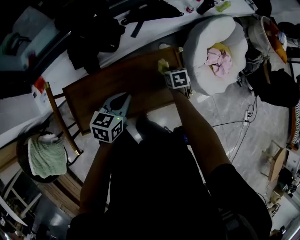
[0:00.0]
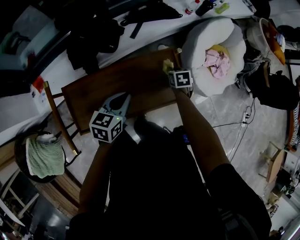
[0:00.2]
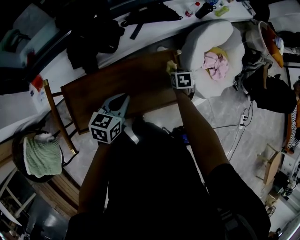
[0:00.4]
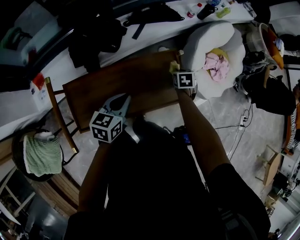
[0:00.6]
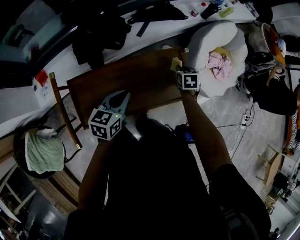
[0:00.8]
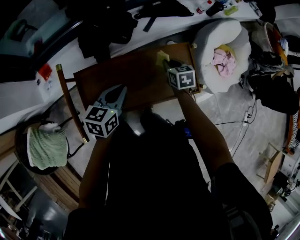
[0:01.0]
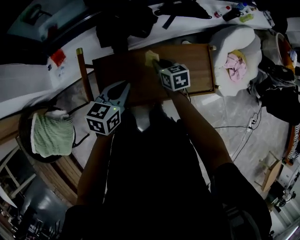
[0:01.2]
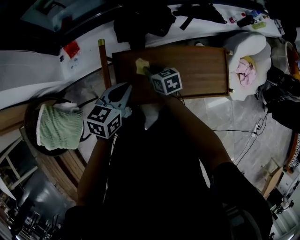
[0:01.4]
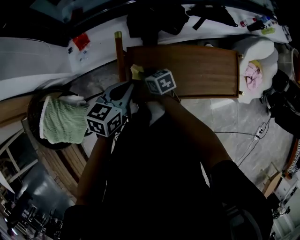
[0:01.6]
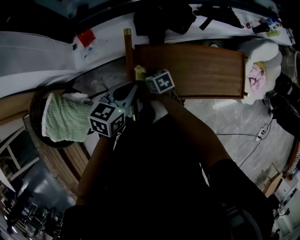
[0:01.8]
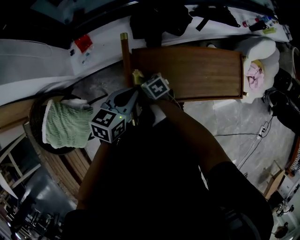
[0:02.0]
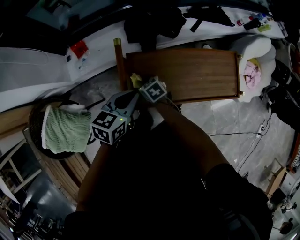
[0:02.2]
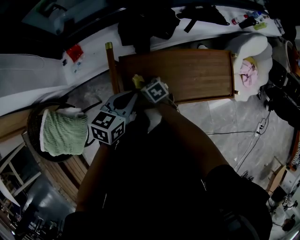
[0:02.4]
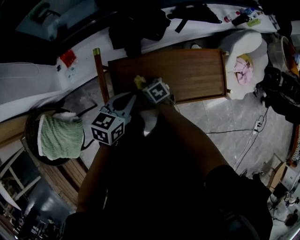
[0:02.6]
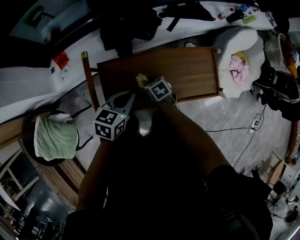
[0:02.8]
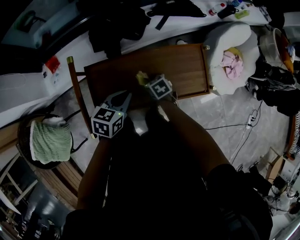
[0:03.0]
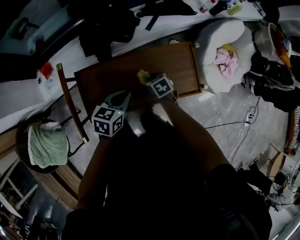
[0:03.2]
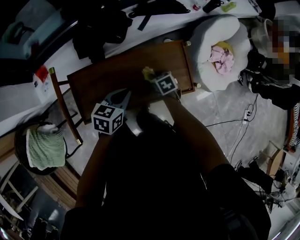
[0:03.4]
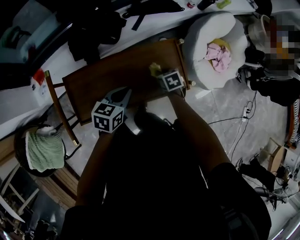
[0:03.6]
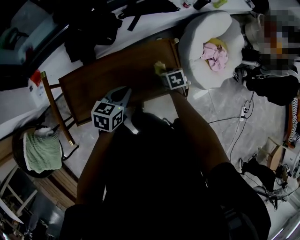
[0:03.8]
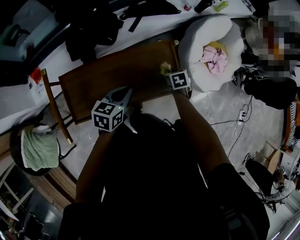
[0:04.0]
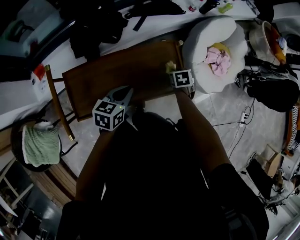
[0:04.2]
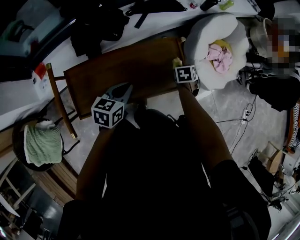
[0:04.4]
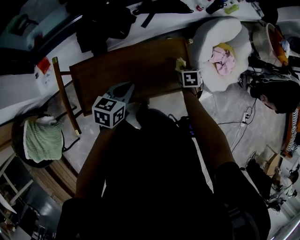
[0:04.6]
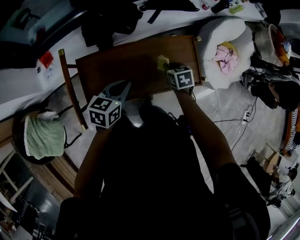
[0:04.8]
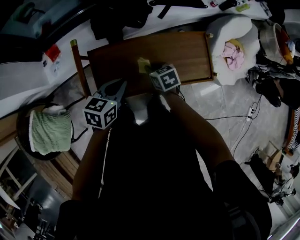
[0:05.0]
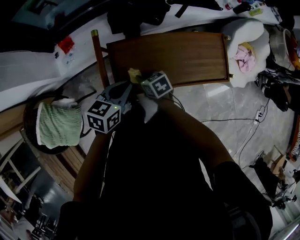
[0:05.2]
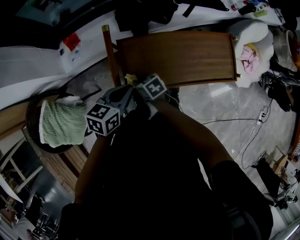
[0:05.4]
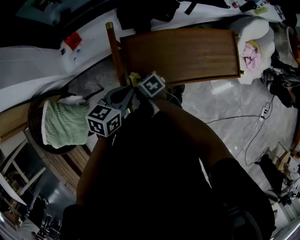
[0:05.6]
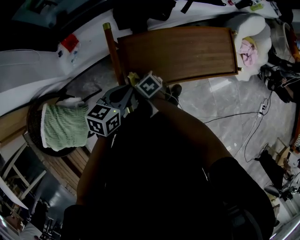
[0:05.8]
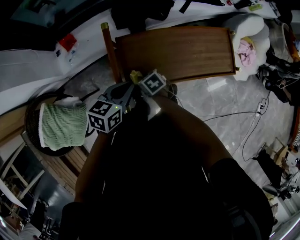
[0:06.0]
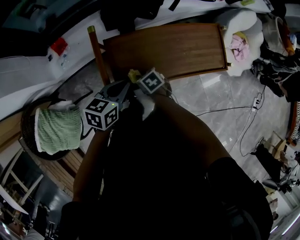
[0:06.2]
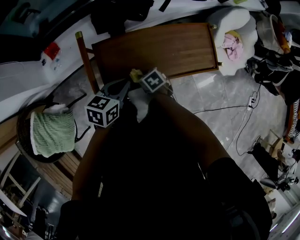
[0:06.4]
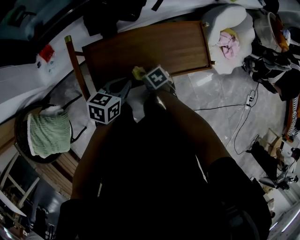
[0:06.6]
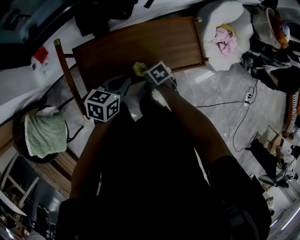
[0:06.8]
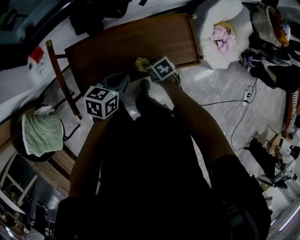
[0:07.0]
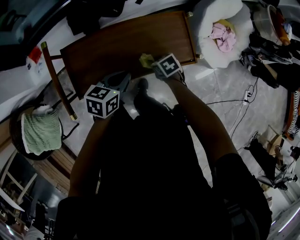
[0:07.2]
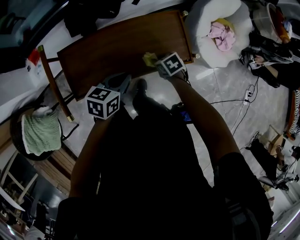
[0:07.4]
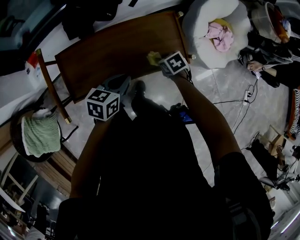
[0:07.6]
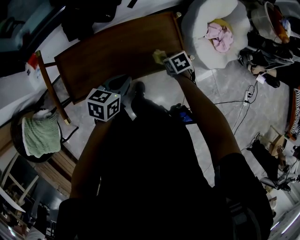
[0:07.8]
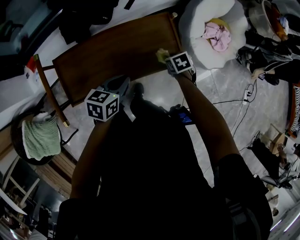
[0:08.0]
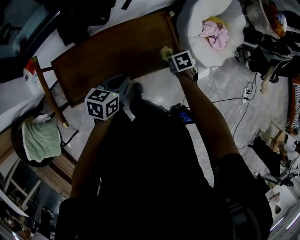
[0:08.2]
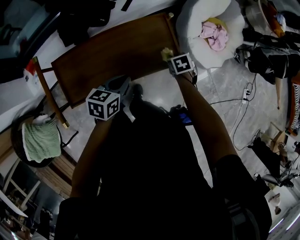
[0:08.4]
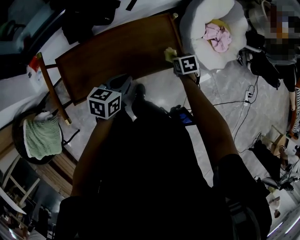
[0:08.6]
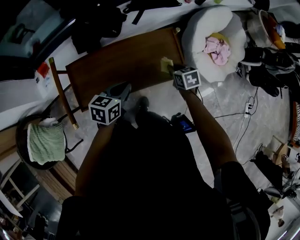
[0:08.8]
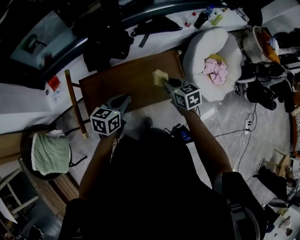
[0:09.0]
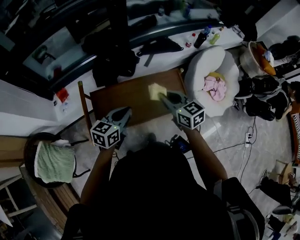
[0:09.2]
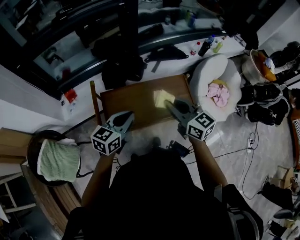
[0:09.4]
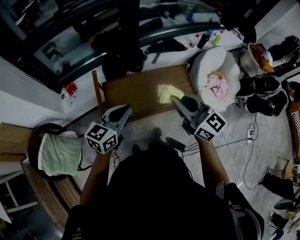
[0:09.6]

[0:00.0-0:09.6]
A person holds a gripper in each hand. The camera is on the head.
0:00.0 to 0:01.6: The right gripper travels upward and back again, approximately 10 cm each way, and rotates roughly 40 degrees, while the left gripper moves roughly 30 cm.
0:01.6 to 0:03.2: Both grippers travel together to the right, roughly 25 cm.
0:04.8 to 0:06.4: The right gripper heads to the left, covering about 25 cm, and turns by about 20 degrees. Meanwhile the left gripper heads to the left, covering about 10 cm.
0:06.4 to 0:08.0: The left gripper heads to the right, covering about 20 cm, while the right gripper shifts some 35 cm to the right.
0:08.0 to 0:09.6: The left gripper shifts approximately 30 cm upward, to the left and backward, and changes its angle by about 30 degrees. Meanwhile the right gripper is displaced upward, to the left and backward by approximately 50 cm, and angles its fingers upward, by roughly 70 degrees.

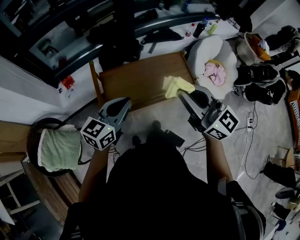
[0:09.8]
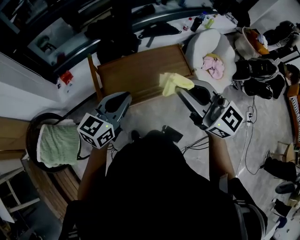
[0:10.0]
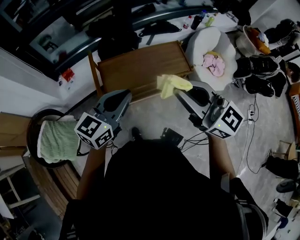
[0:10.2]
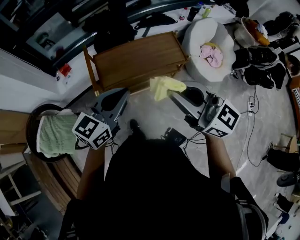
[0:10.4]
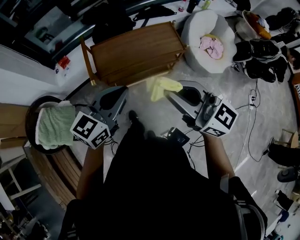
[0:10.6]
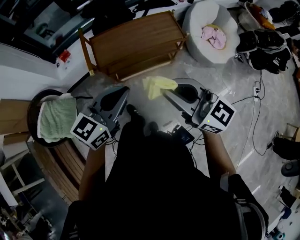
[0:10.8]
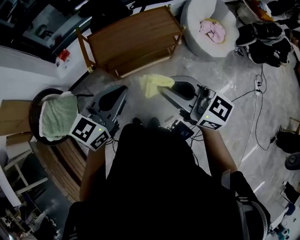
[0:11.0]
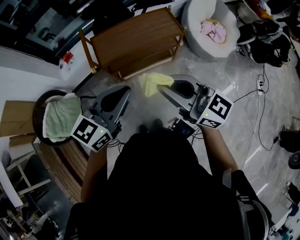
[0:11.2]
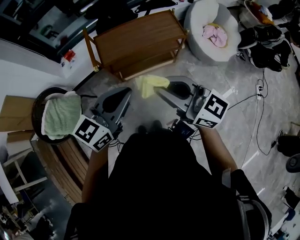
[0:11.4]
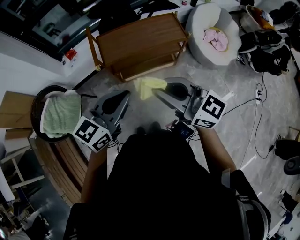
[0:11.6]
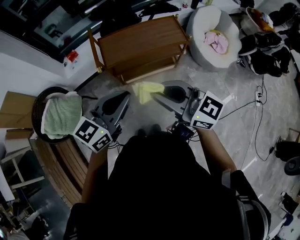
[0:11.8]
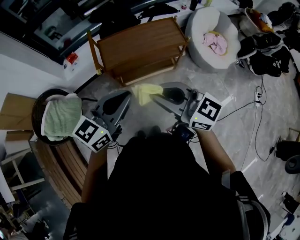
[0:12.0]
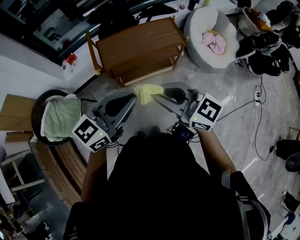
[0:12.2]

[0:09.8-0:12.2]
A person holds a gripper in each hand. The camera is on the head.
0:09.8 to 0:11.0: Both grippers travel together backward, approximately 25 cm.
0:11.0 to 0:12.2: The right gripper changes place by about 5 cm, while the left gripper ends up roughly 5 cm from where it was.

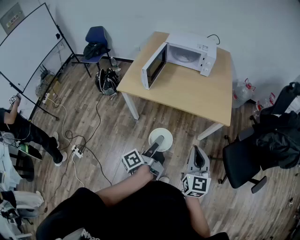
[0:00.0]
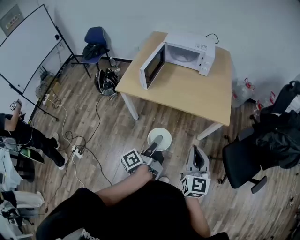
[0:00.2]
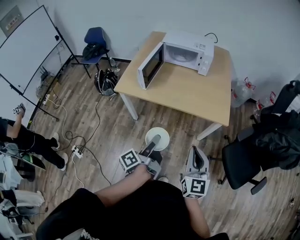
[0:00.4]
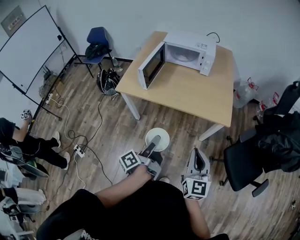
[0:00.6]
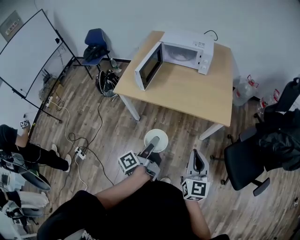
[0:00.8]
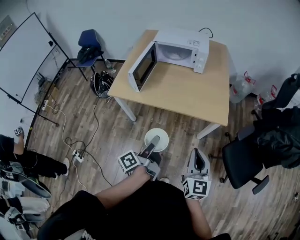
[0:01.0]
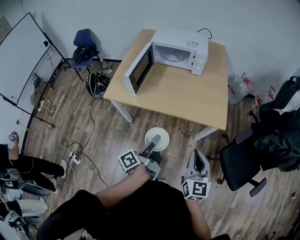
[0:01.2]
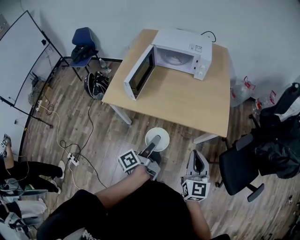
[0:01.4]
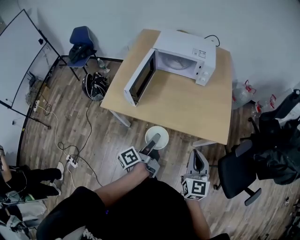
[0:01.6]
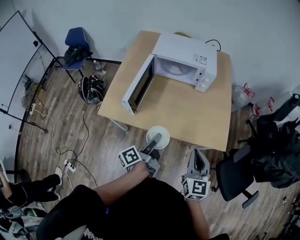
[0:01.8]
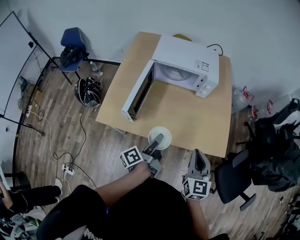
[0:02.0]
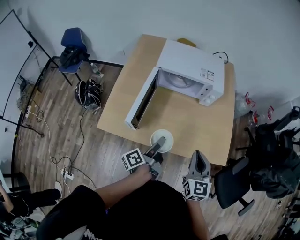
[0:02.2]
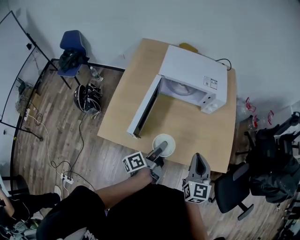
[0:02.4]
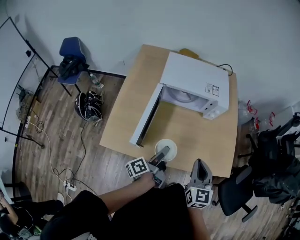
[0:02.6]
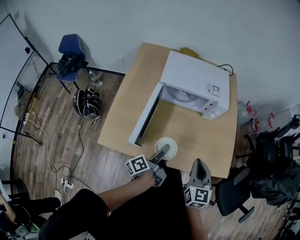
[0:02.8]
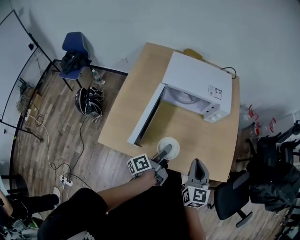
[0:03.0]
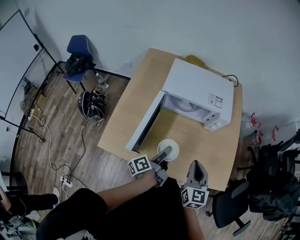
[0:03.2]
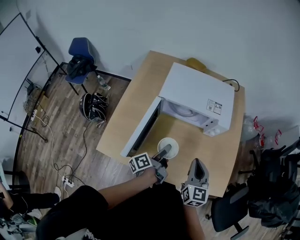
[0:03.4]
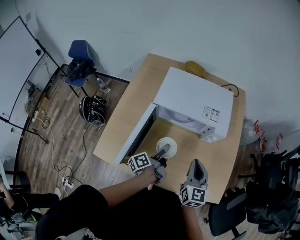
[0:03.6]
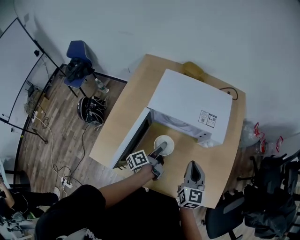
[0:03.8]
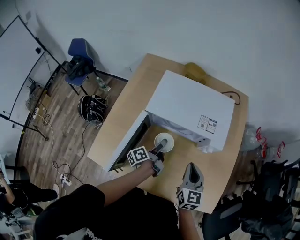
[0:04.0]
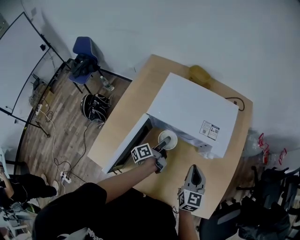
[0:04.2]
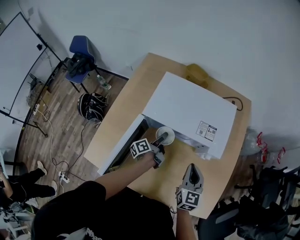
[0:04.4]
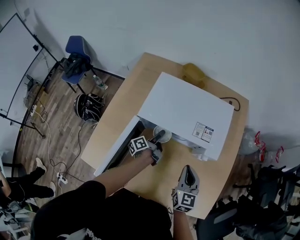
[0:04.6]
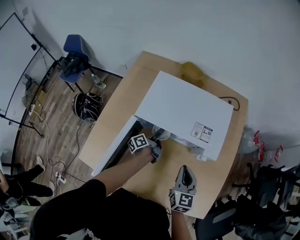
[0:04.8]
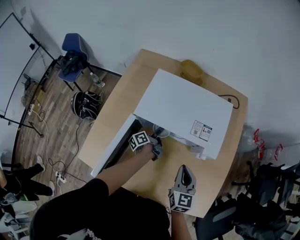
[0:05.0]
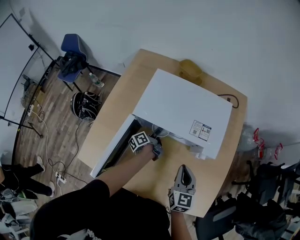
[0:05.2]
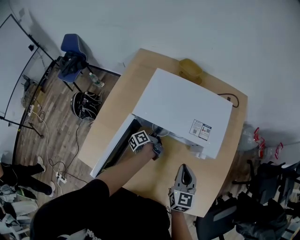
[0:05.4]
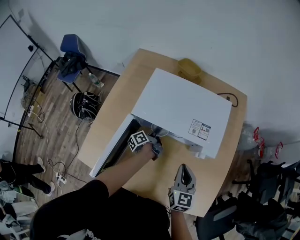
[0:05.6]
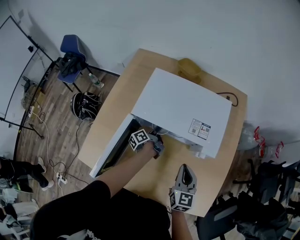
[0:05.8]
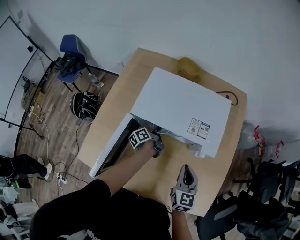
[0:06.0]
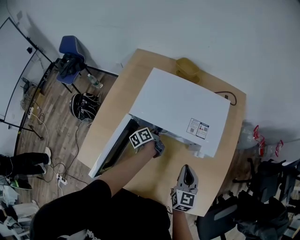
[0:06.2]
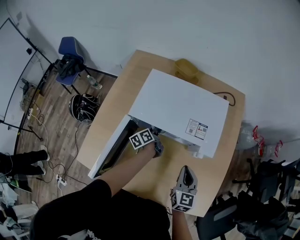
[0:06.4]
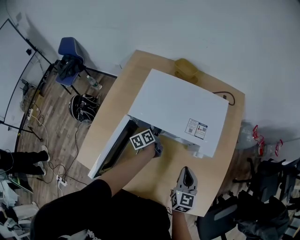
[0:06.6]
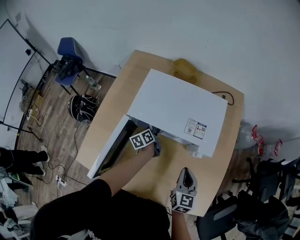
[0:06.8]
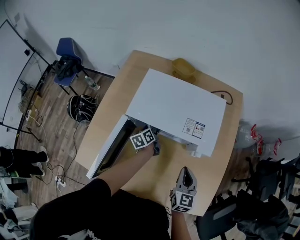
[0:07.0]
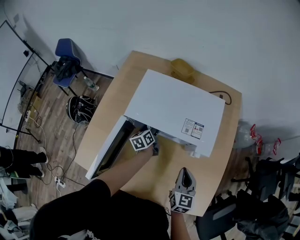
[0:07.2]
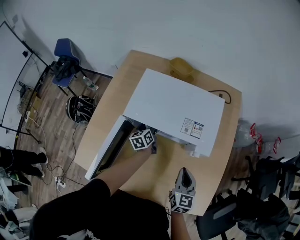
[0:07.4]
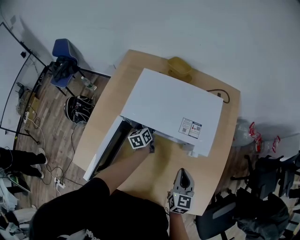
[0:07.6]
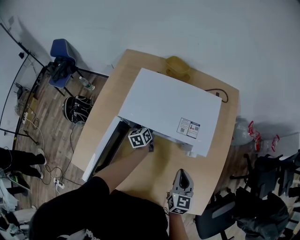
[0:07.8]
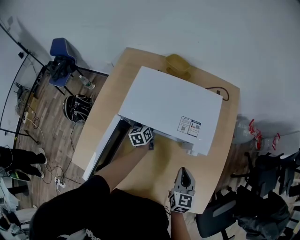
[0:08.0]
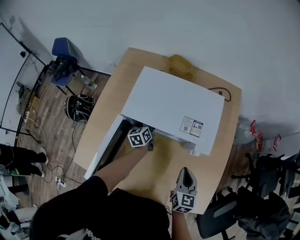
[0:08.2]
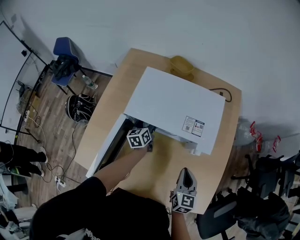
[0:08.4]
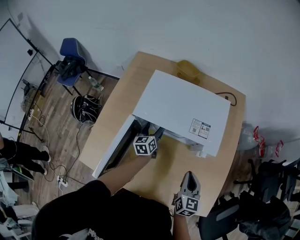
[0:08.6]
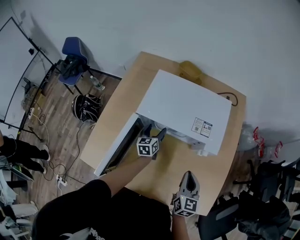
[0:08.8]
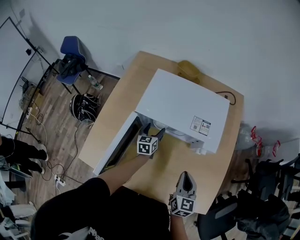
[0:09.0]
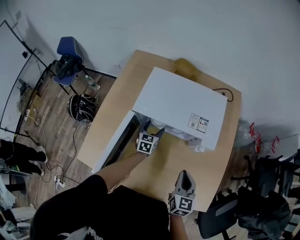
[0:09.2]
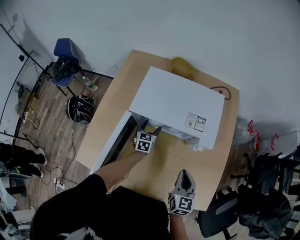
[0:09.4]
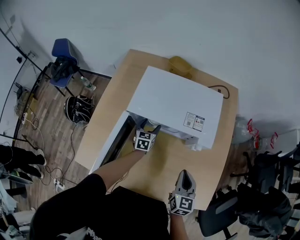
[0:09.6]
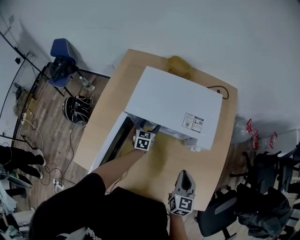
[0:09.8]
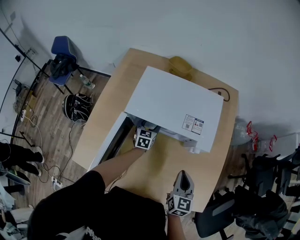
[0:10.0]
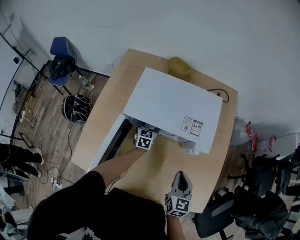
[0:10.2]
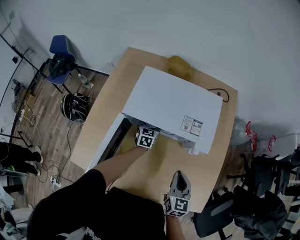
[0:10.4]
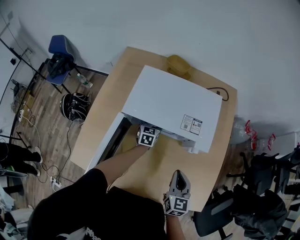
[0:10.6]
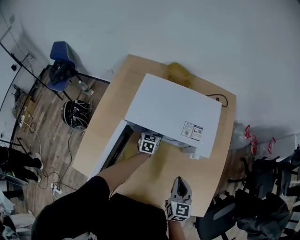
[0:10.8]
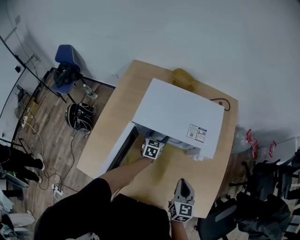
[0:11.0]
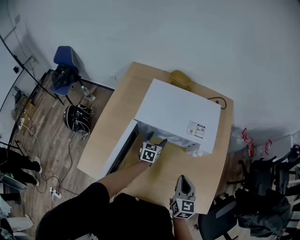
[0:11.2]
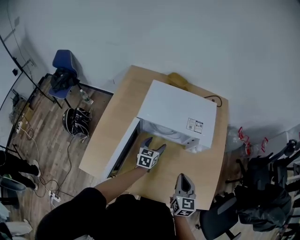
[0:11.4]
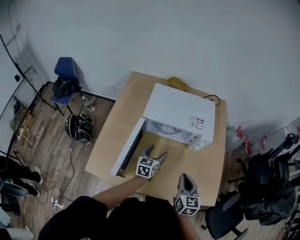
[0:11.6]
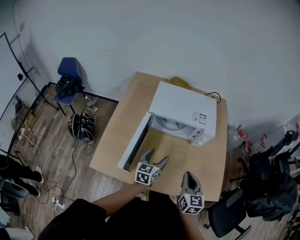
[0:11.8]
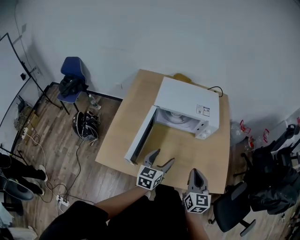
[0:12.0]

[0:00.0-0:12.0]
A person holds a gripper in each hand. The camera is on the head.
0:00.0 to 0:01.6: Both grippers travel together forward, some 20 cm.
0:01.6 to 0:03.0: The right gripper moves forward and to the left, about 25 cm, while the left gripper is displaced forward by some 20 cm.
0:03.0 to 0:04.4: The left gripper moves forward and downward, some 30 cm; the right gripper shifts some 20 cm forward.
0:04.4 to 0:06.0: The left gripper goes approximately 5 cm forward.
0:06.0 to 0:07.6: The left gripper rotates around the line of its fingers by some 40 degrees, clockwise from behind.
0:07.6 to 0:09.0: The left gripper is displaced backward by about 5 cm, and turns by roughly 20 degrees. The right gripper changes place by roughly 5 cm.
0:09.0 to 0:10.4: The left gripper heads forward, covering roughly 5 cm.
0:10.4 to 0:12.0: The right gripper heads backward and upward, covering approximately 20 cm, while the left gripper is displaced backward and upward by some 40 cm, and turns by about 20 degrees.
